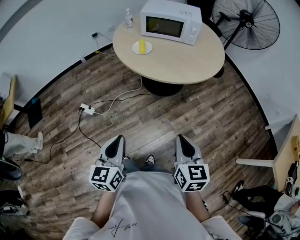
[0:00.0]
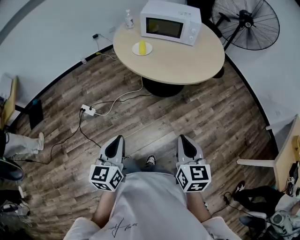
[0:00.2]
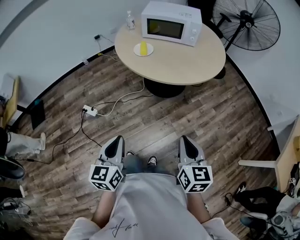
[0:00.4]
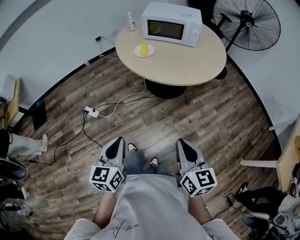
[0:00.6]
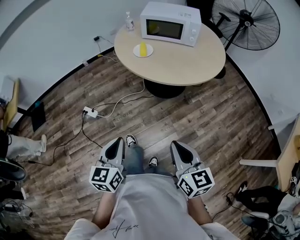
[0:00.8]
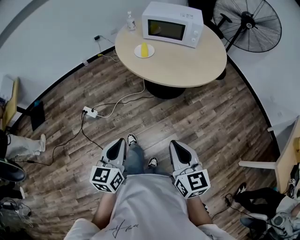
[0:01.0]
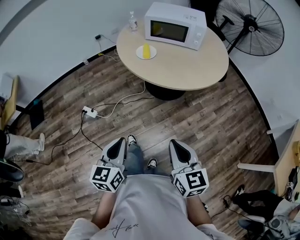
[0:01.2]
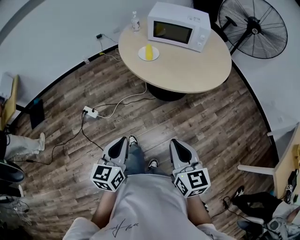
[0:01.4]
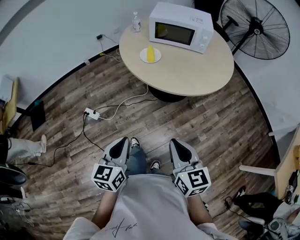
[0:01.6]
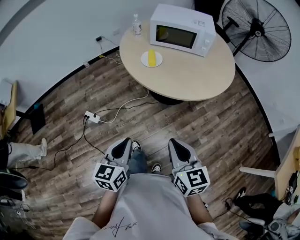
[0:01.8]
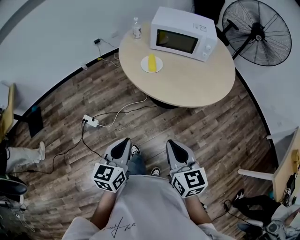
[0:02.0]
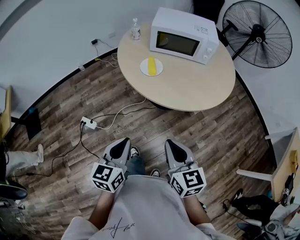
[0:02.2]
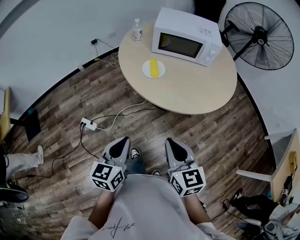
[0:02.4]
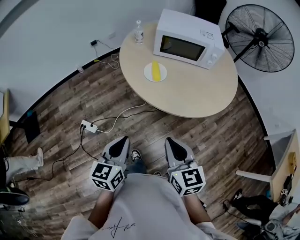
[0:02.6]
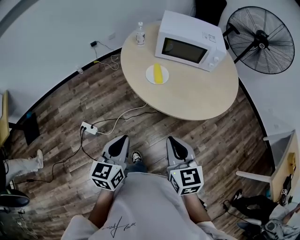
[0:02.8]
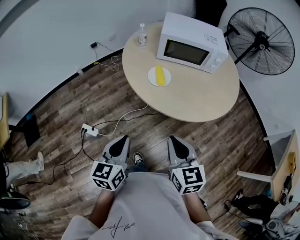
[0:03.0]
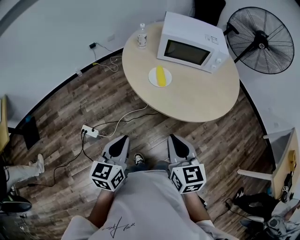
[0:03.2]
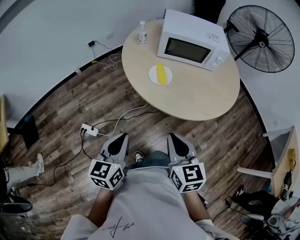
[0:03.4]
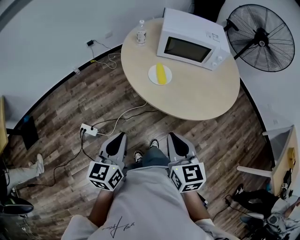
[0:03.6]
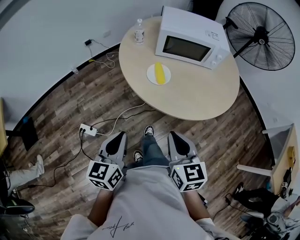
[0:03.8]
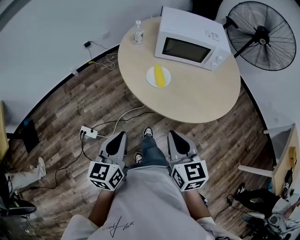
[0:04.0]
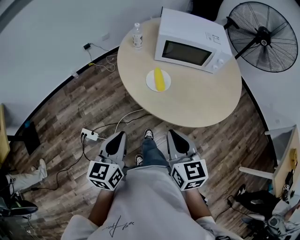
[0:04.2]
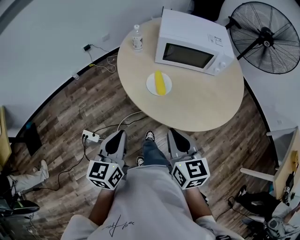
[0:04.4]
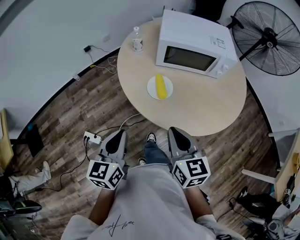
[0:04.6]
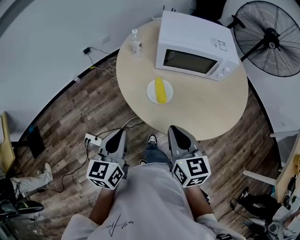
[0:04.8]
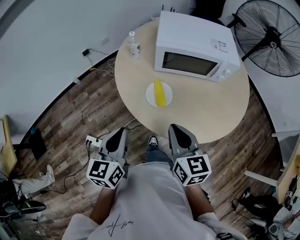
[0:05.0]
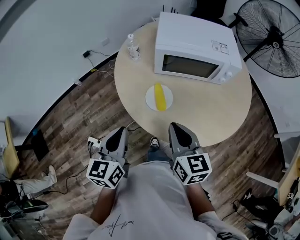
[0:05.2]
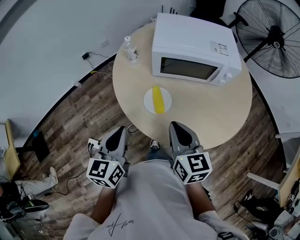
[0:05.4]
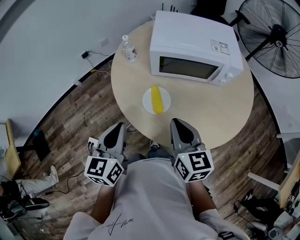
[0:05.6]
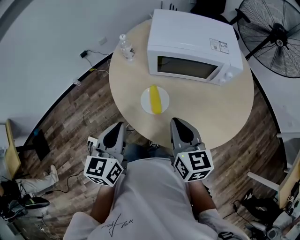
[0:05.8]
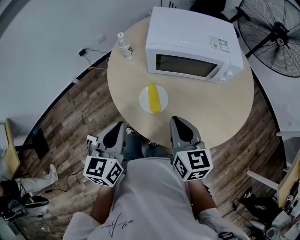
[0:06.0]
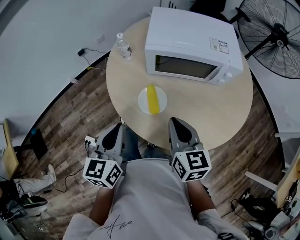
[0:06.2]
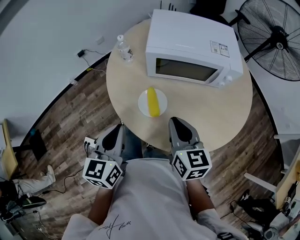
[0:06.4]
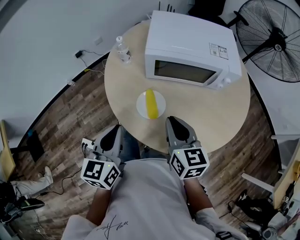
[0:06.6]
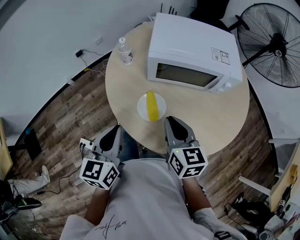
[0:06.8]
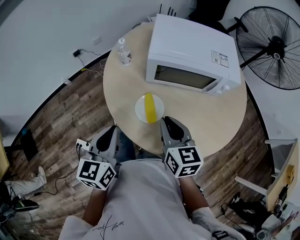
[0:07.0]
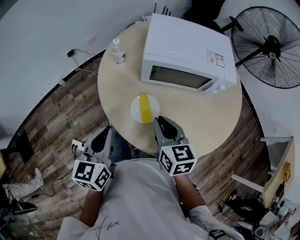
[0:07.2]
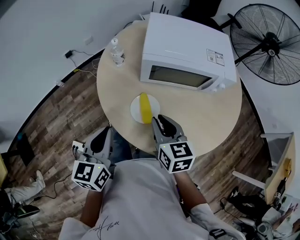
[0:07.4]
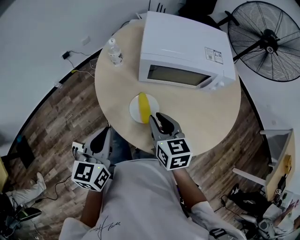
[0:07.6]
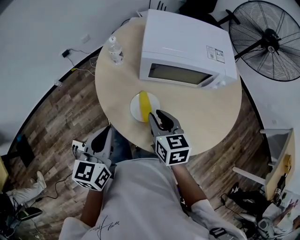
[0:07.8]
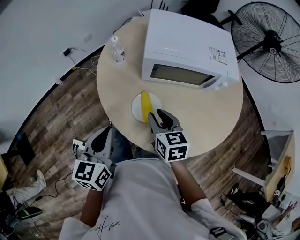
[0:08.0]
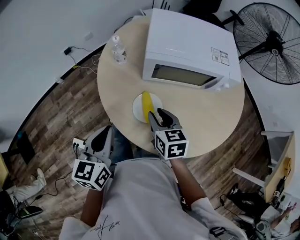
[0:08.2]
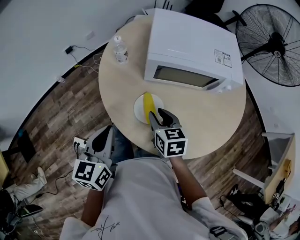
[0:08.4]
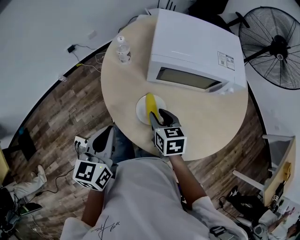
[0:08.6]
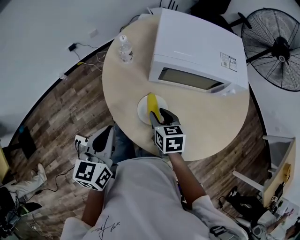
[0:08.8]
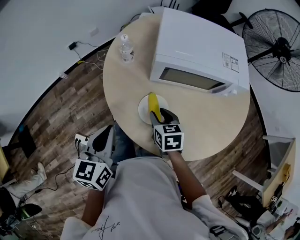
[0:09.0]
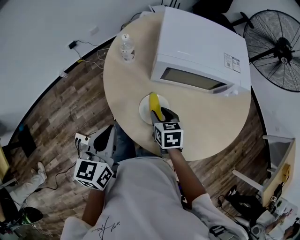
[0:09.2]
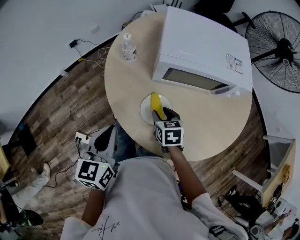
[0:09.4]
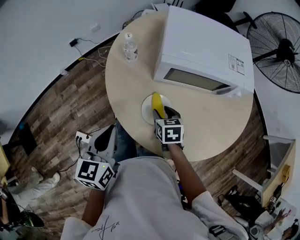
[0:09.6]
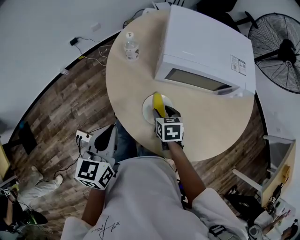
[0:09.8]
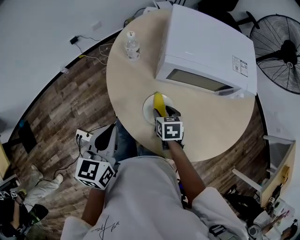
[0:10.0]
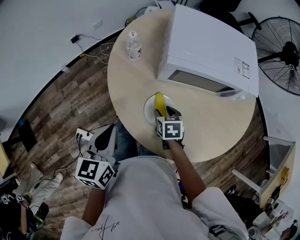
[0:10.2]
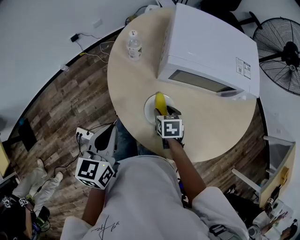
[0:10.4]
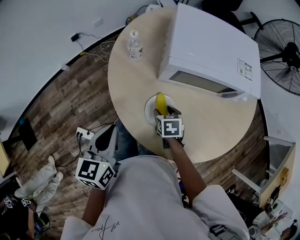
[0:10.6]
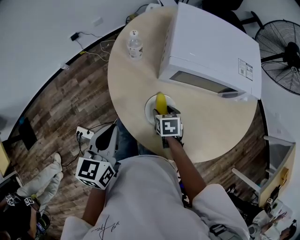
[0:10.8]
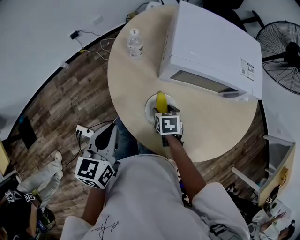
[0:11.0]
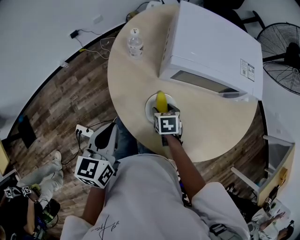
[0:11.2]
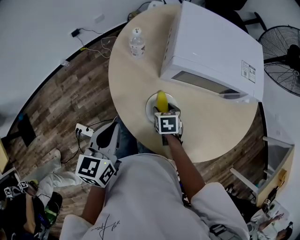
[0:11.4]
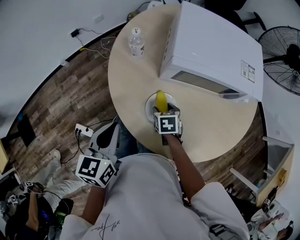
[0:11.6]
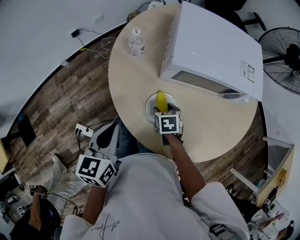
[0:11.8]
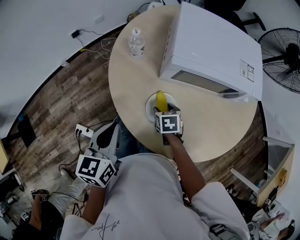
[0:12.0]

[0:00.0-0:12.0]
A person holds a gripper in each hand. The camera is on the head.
0:00.0 to 0:01.6: The right gripper travels to the left and forward by approximately 10 cm. Meanwhile the left gripper shifts roughly 5 cm forward.
0:01.6 to 0:03.0: Both grippers move forward and to the left, some 25 cm.
0:03.0 to 0:04.4: Both grippers move forward, about 10 cm.
0:04.4 to 0:06.0: The two grippers go about 20 cm forward.
0:06.0 to 0:07.6: The left gripper moves some 5 cm. The right gripper moves forward, approximately 5 cm.
0:07.6 to 0:09.0: The right gripper heads downward, covering about 10 cm.
0:09.0 to 0:10.4: The right gripper heads downward, covering about 10 cm.
0:10.4 to 0:12.0: There are only small adjustments of the grippers.

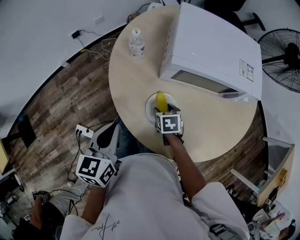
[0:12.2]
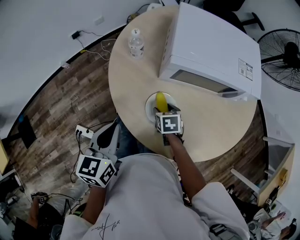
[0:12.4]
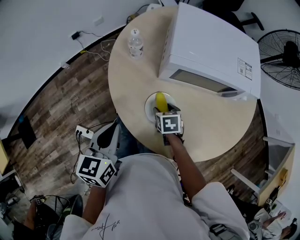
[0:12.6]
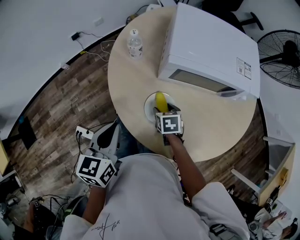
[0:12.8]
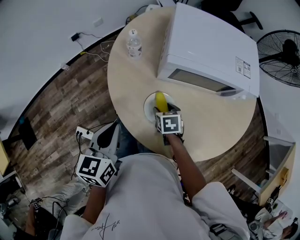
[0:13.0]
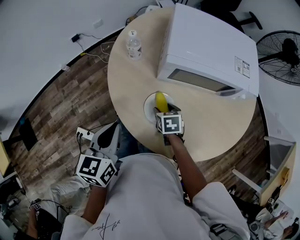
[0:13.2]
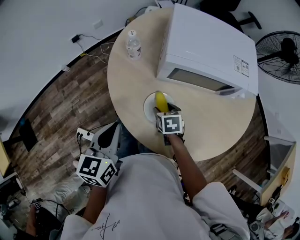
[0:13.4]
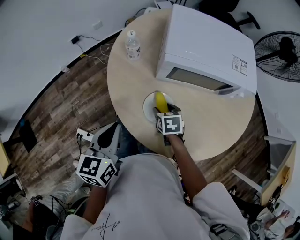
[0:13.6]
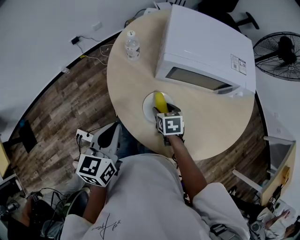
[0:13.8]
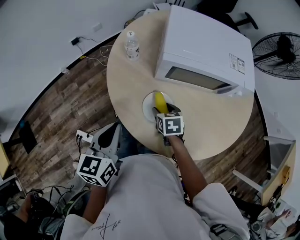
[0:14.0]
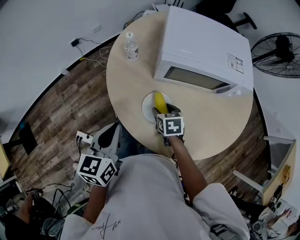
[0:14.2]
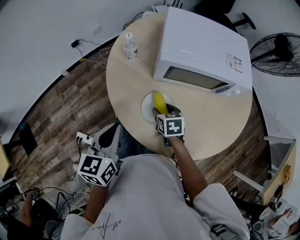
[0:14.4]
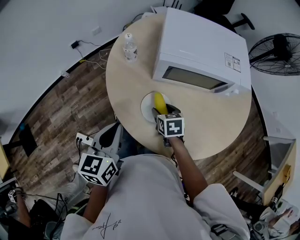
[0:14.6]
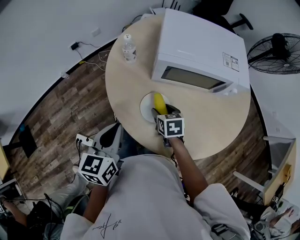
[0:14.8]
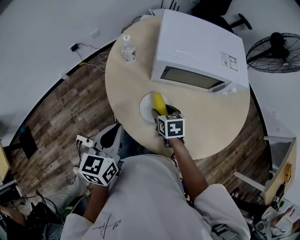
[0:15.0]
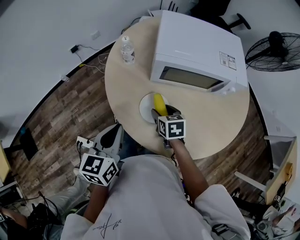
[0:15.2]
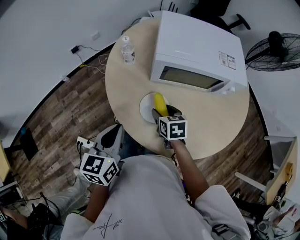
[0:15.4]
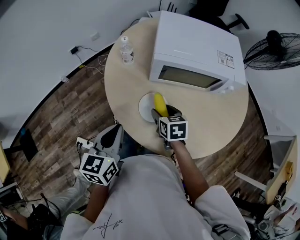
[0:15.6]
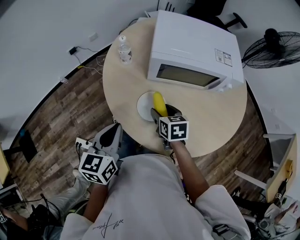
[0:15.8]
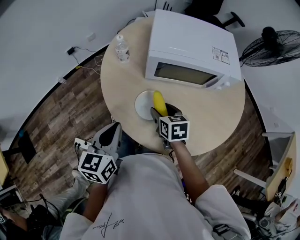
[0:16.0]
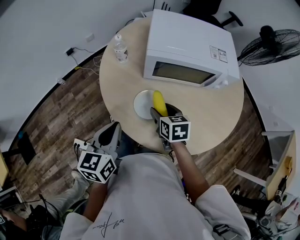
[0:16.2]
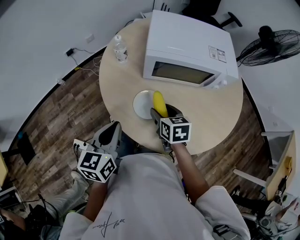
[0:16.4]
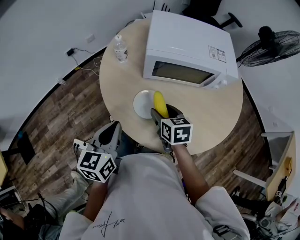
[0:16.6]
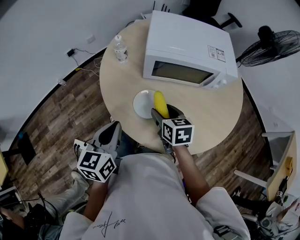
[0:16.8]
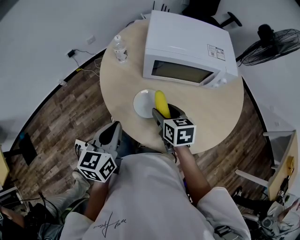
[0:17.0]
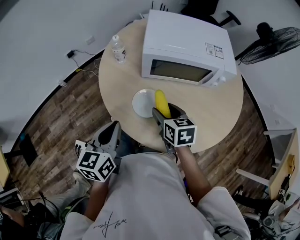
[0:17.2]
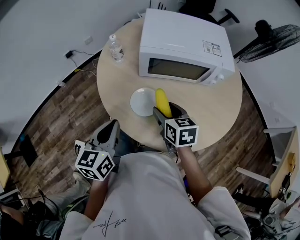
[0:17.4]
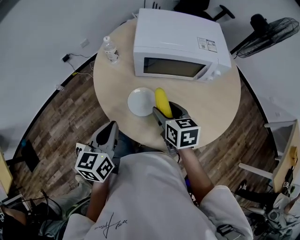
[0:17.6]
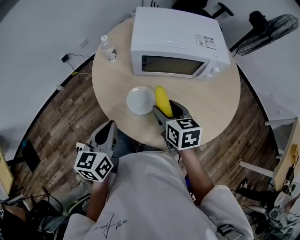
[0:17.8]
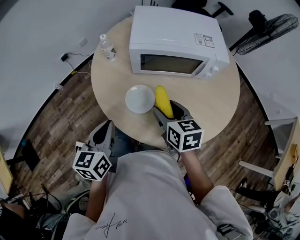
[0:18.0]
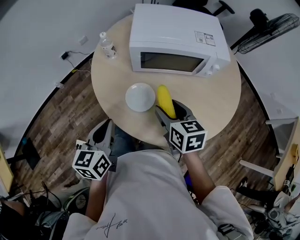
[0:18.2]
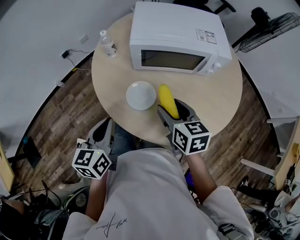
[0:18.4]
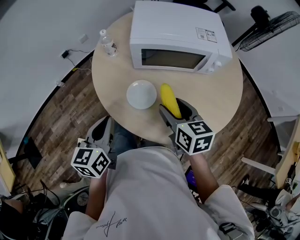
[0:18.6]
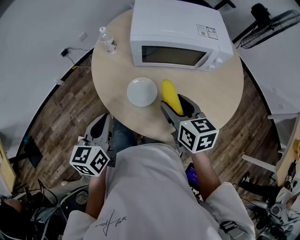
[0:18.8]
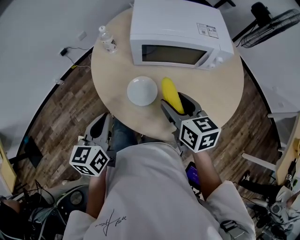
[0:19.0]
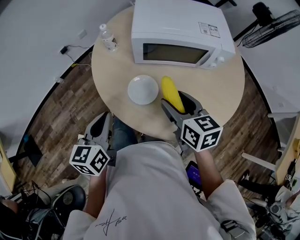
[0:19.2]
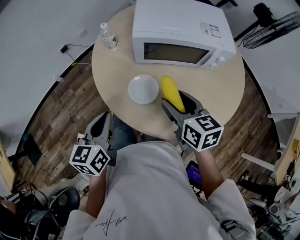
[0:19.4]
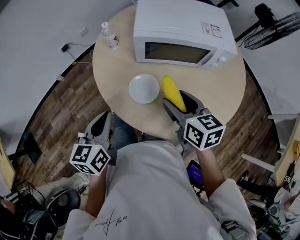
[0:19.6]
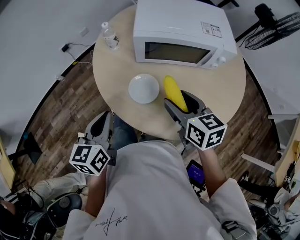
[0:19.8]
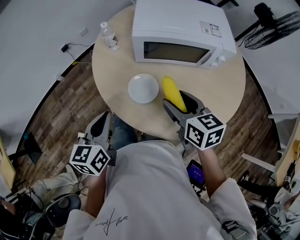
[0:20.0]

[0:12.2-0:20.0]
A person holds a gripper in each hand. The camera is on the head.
0:12.2 to 0:13.8: There are only small adjustments of the grippers.
0:13.8 to 0:15.4: The right gripper travels upward by about 5 cm.
0:15.4 to 0:16.8: The right gripper moves upward, roughly 5 cm.
0:16.8 to 0:18.4: The right gripper moves upward and to the right, approximately 10 cm.
0:18.4 to 0:20.0: The grippers make only small movements.

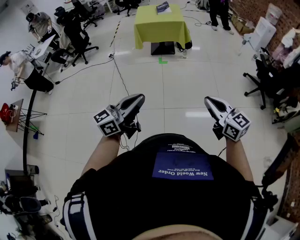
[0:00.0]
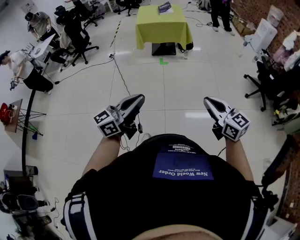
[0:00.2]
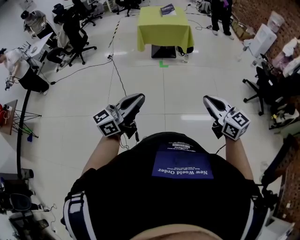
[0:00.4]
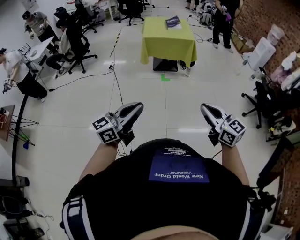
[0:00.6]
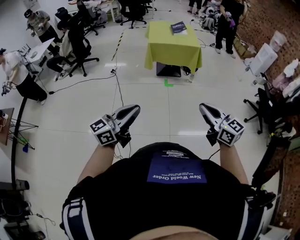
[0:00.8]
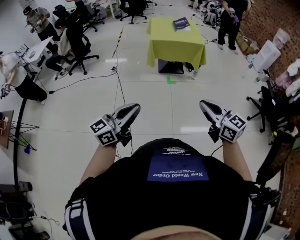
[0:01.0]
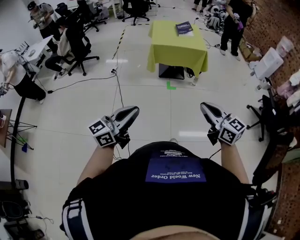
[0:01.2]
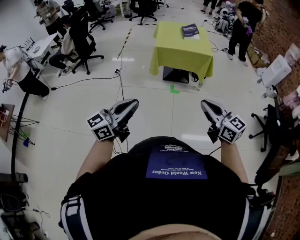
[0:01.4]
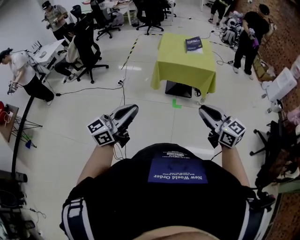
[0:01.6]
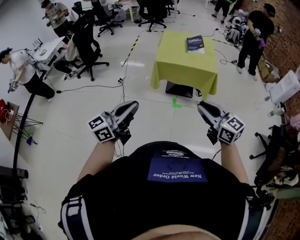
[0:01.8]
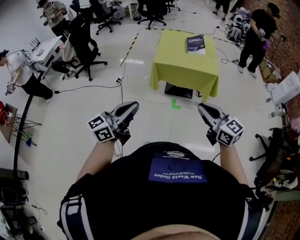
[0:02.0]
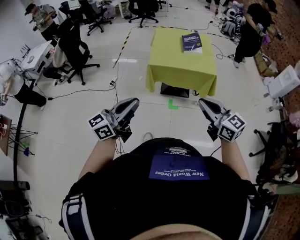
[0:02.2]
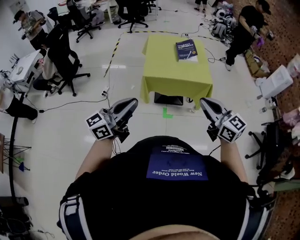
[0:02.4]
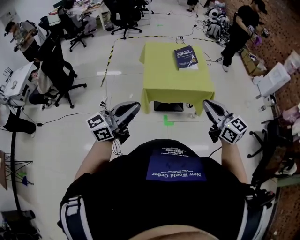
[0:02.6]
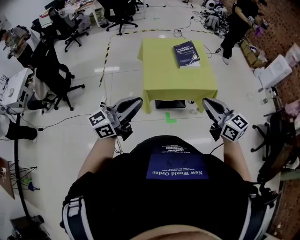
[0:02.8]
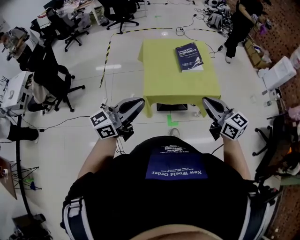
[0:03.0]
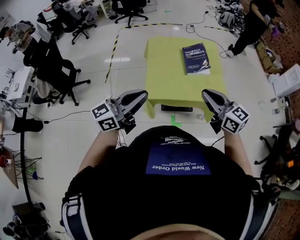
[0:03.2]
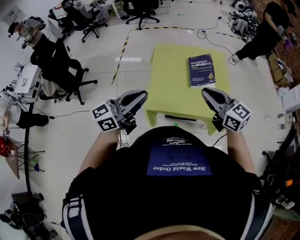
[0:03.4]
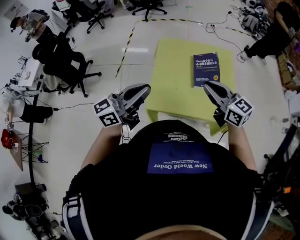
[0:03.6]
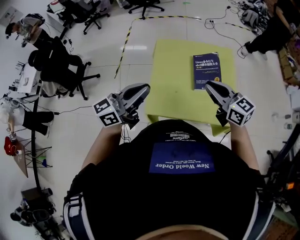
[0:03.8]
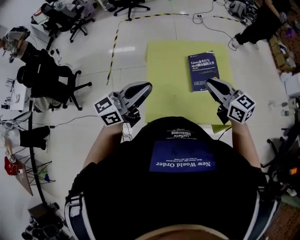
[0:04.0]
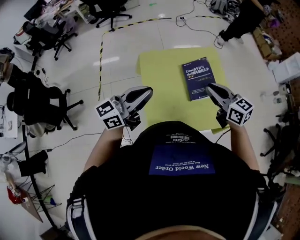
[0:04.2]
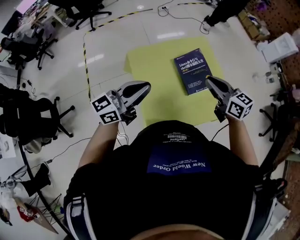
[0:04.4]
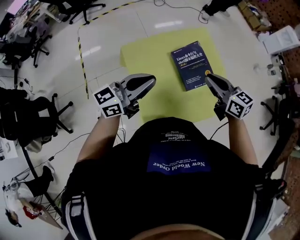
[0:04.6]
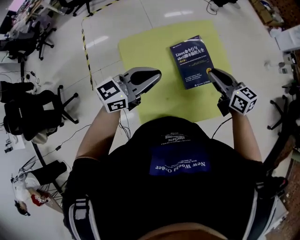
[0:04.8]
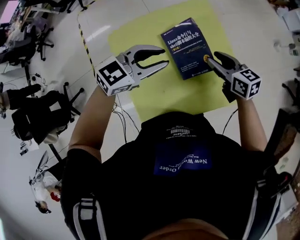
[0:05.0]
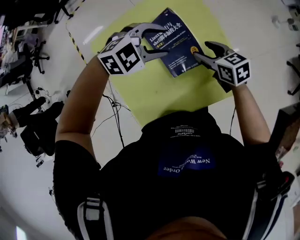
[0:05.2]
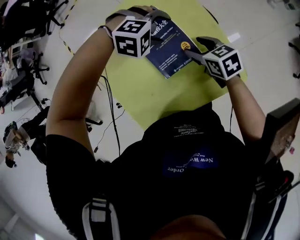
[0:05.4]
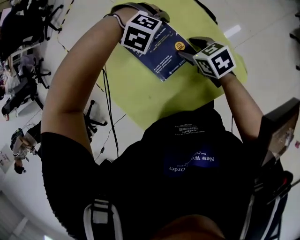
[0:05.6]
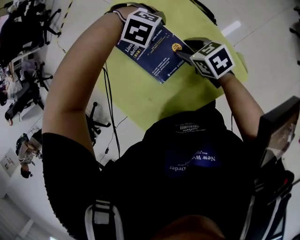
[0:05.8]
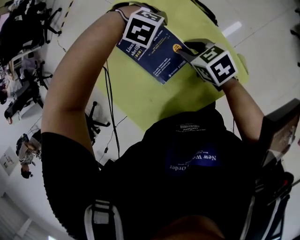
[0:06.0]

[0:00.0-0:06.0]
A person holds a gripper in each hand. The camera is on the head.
0:00.0 to 0:01.6: Both grippers are carried forward and to the left, roughly 50 cm.
0:01.6 to 0:03.0: The pair of grippers is taken forward, roughly 50 cm.
0:03.0 to 0:04.4: The left gripper ends up some 40 cm from where it was. The right gripper moves roughly 35 cm.
0:04.4 to 0:06.0: The left gripper changes place by some 50 cm, tilts its fingers some 80 degrees downward, and opens its fingers; the right gripper heads downward, covering some 25 cm, rotates roughly 30 degrees, and opens, then closes once more.
